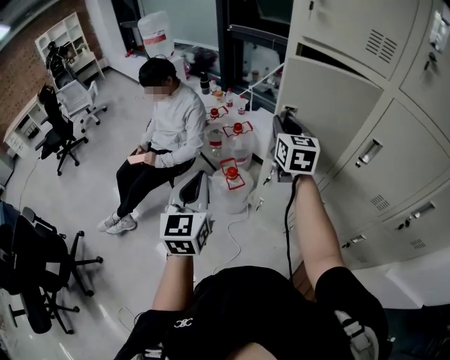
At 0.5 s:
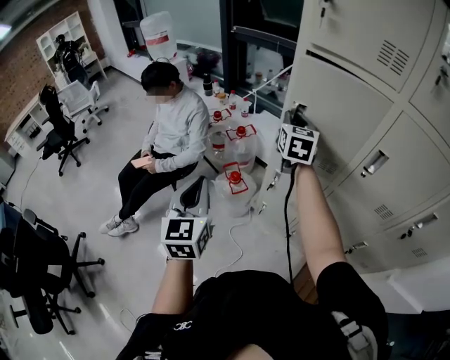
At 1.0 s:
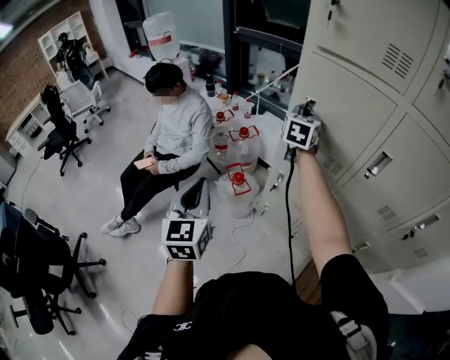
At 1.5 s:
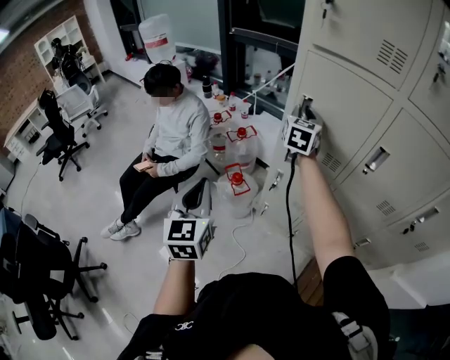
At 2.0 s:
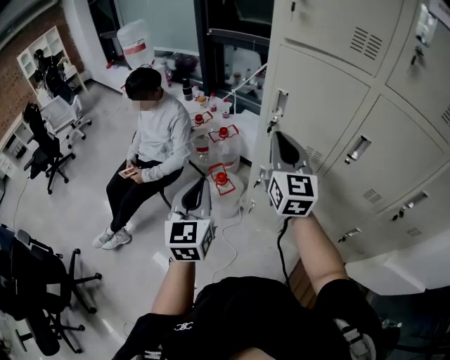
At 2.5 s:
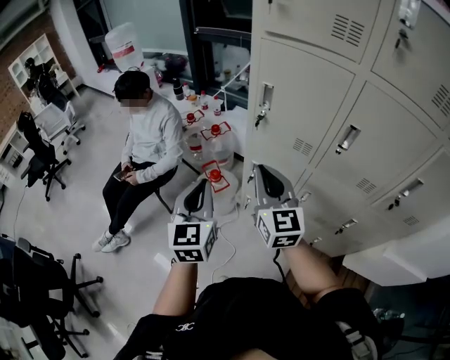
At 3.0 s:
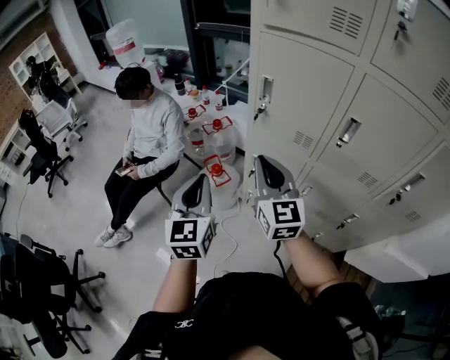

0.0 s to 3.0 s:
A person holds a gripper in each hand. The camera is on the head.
0.0 to 1.5 s: The right gripper heads forward, covering some 10 cm, and swivels some 20 degrees.
1.5 to 3.0 s: The right gripper moves backward, some 25 cm, and swivels roughly 20 degrees. The left gripper travels to the right by some 10 cm.

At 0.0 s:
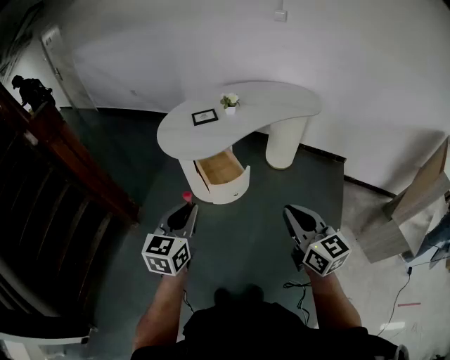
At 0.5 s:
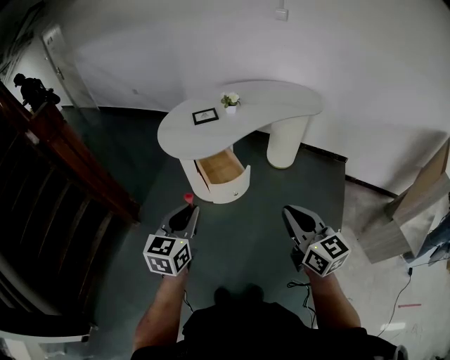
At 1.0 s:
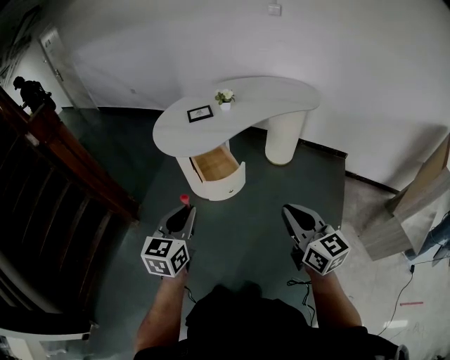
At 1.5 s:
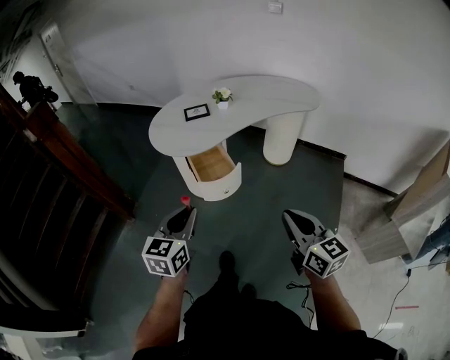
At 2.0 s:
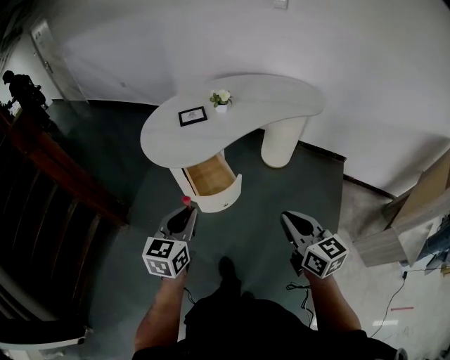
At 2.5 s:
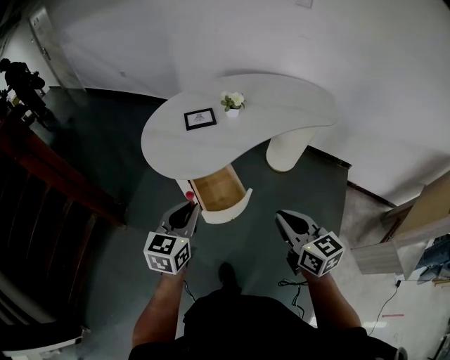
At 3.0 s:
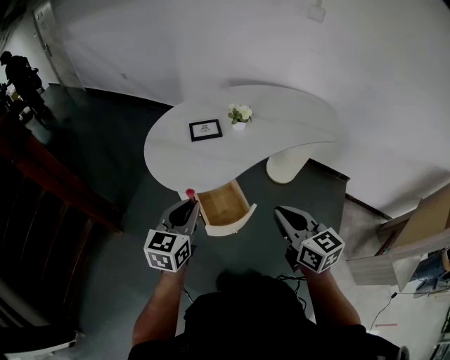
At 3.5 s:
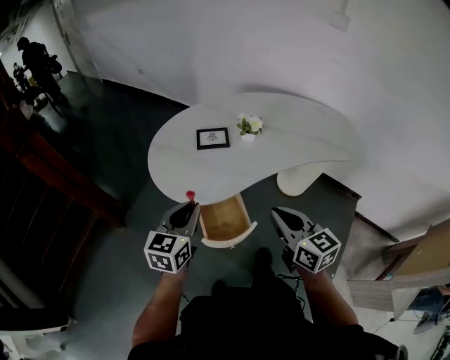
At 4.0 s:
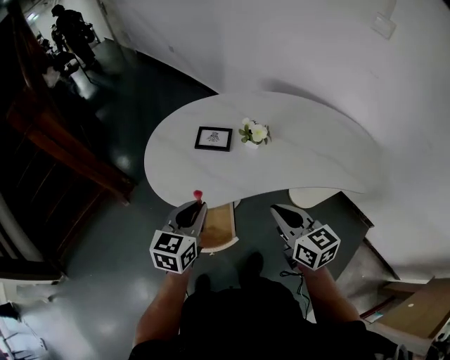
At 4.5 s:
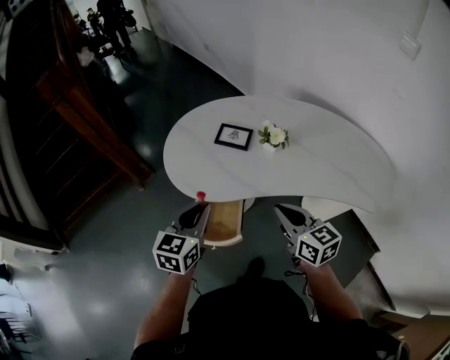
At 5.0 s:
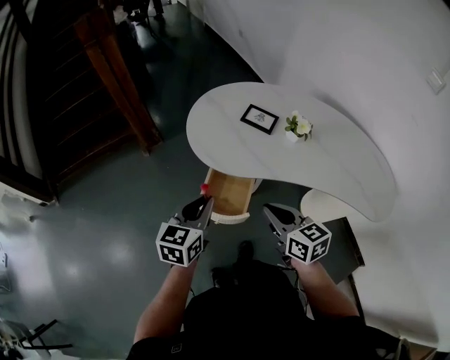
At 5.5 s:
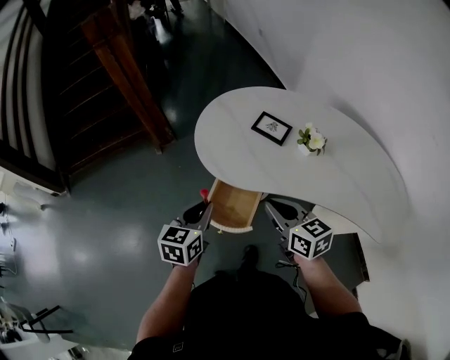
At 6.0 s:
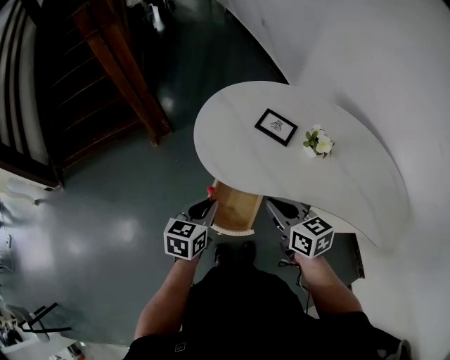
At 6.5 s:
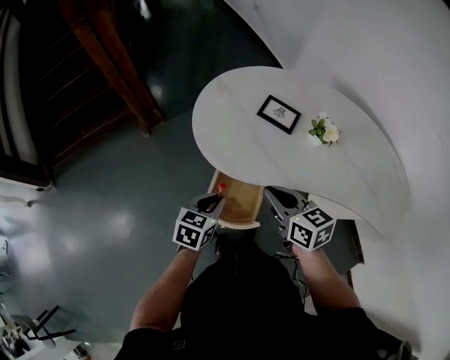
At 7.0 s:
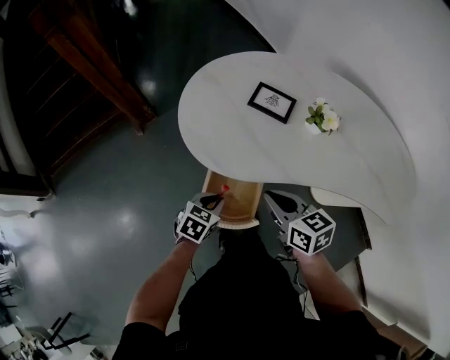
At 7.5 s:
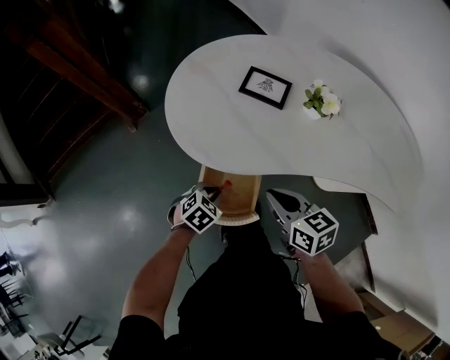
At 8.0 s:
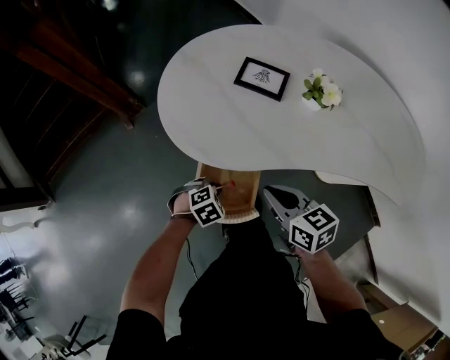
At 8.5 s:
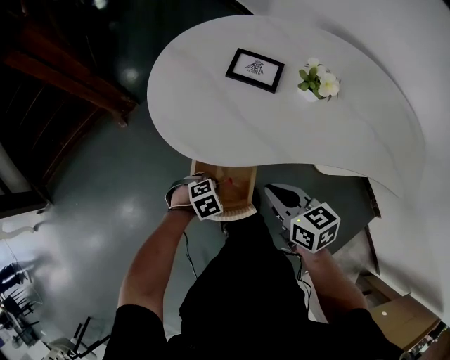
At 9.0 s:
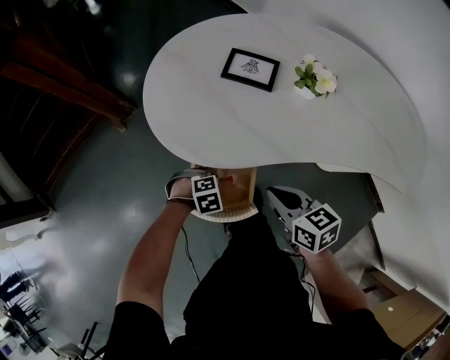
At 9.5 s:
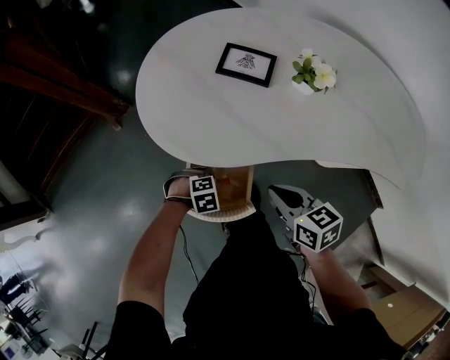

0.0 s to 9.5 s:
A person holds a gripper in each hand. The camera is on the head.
0.0 to 2.0 s: The right gripper moves forward, downward and to the right, some 15 cm. The left gripper moves forward, to the right and downward, approximately 15 cm.
2.0 to 4.0 s: Both grippers travel together forward, approximately 35 cm. The right gripper changes its angle by approximately 30 degrees. Meanwhile the left gripper turns by roughly 20 degrees.
4.0 to 5.5 s: The right gripper changes place by approximately 10 cm, and changes its angle by about 30 degrees. The left gripper moves some 10 cm, and changes its angle by roughly 30 degrees.
5.5 to 7.5 s: The right gripper moves downward, some 10 cm, while the left gripper heads downward, covering approximately 25 cm, and tilts its fingers some 30 degrees downward.
7.5 to 9.5 s: The left gripper is displaced downward by roughly 10 cm, and changes its angle by some 40 degrees; the right gripper shifts approximately 5 cm downward.

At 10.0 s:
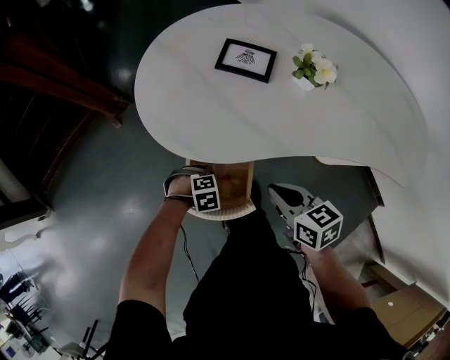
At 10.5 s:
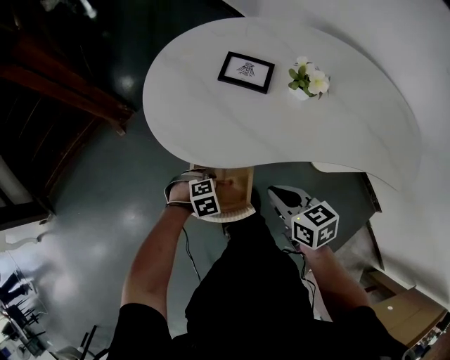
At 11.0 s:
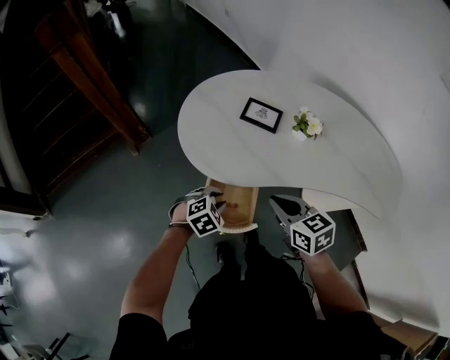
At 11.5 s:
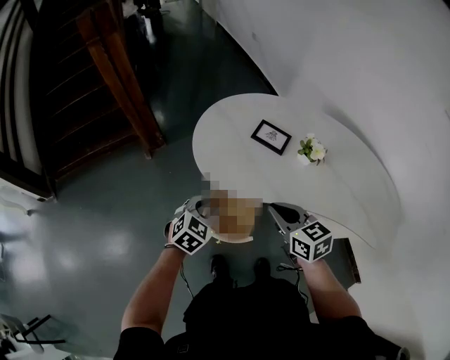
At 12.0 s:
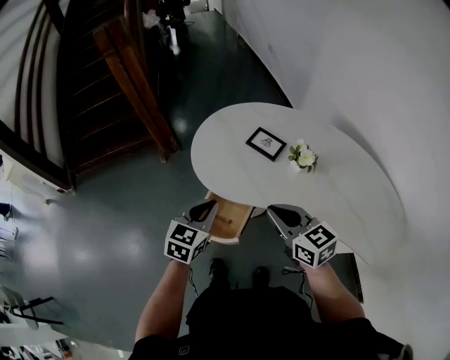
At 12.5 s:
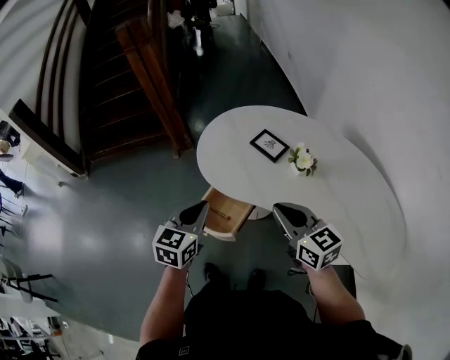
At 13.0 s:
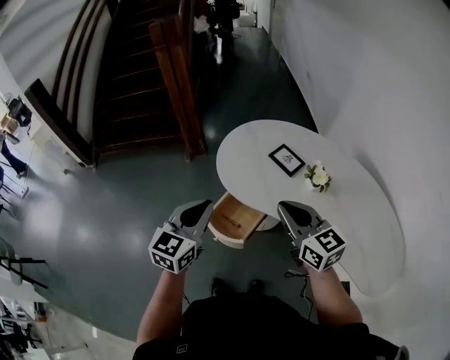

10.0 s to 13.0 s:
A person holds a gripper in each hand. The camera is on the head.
10.0 to 11.5 s: The right gripper travels upward by some 15 cm, and changes its angle by about 20 degrees. The left gripper heads upward, covering about 30 cm, and tilts its fingers some 40 degrees upward.
11.5 to 13.0 s: The left gripper is displaced upward and backward by roughly 25 cm, tilts its fingers some 30 degrees upward, and closes its fingers. Meanwhile the right gripper travels upward and to the right by roughly 15 cm, and swivels roughly 30 degrees.

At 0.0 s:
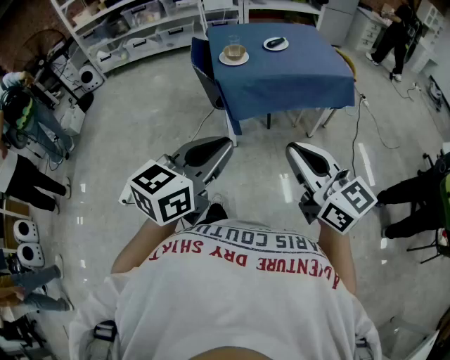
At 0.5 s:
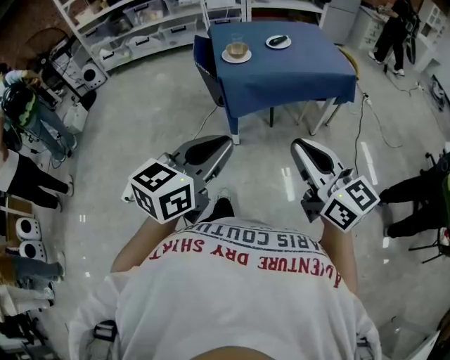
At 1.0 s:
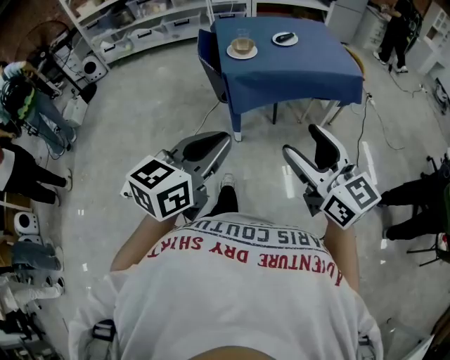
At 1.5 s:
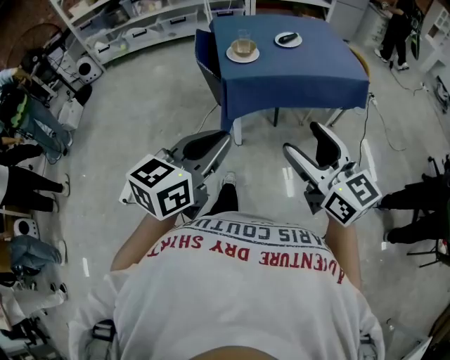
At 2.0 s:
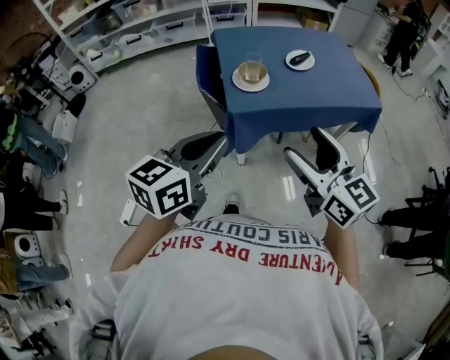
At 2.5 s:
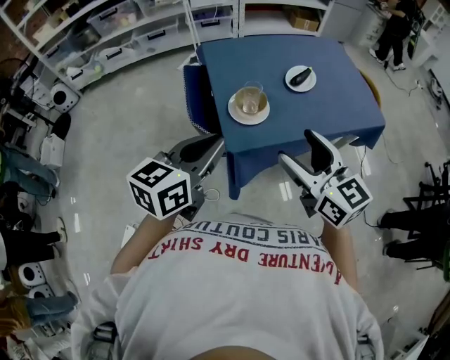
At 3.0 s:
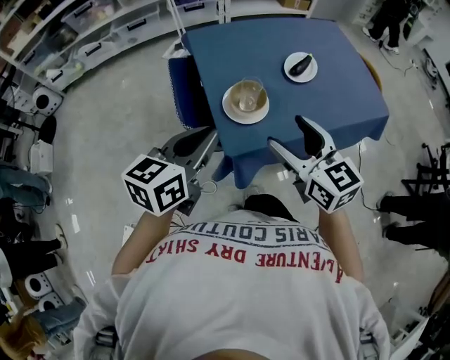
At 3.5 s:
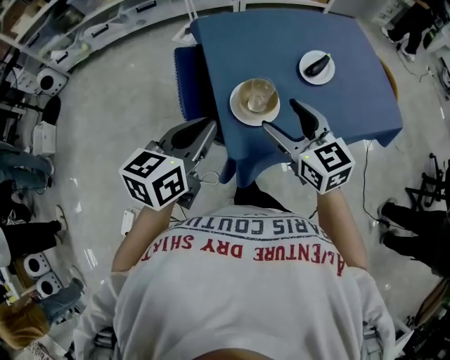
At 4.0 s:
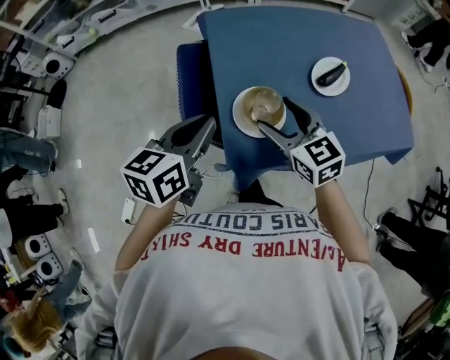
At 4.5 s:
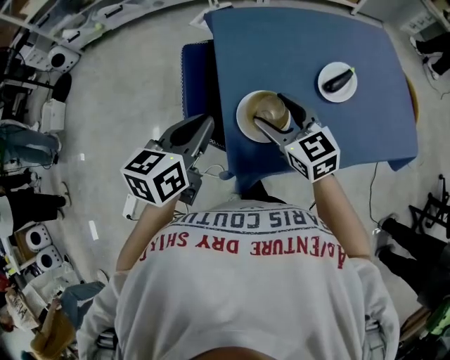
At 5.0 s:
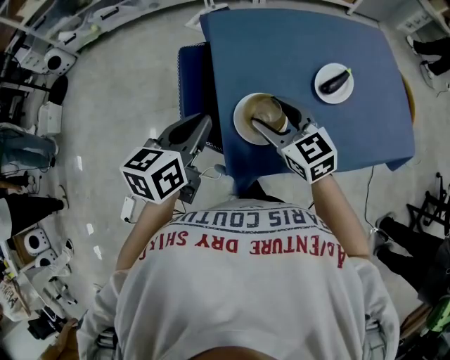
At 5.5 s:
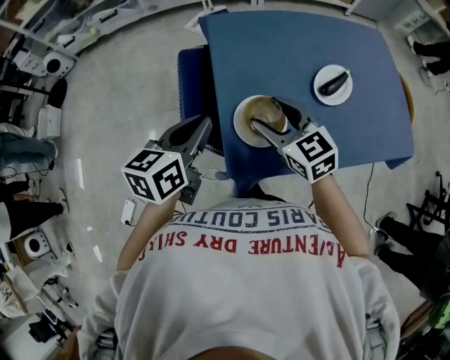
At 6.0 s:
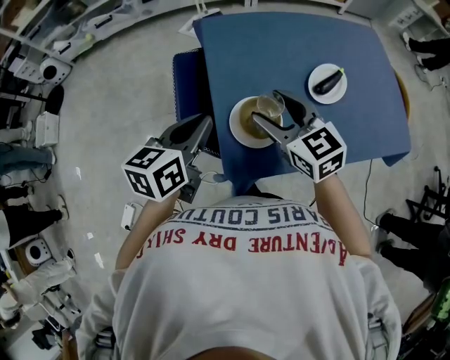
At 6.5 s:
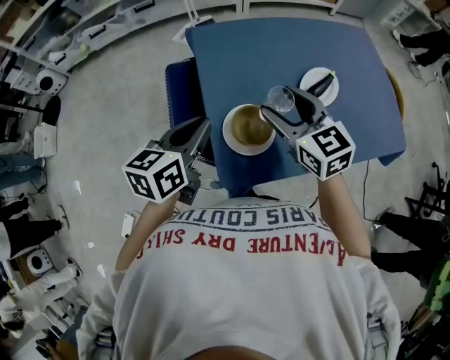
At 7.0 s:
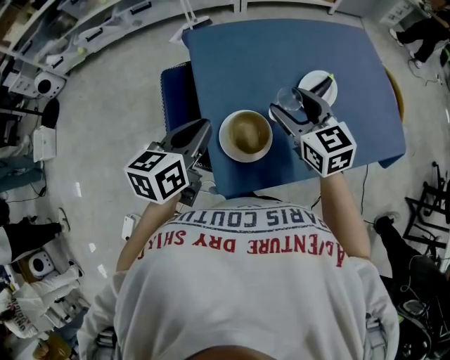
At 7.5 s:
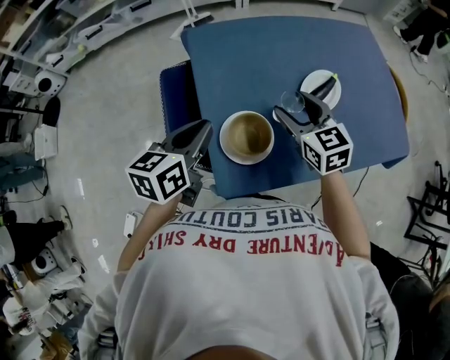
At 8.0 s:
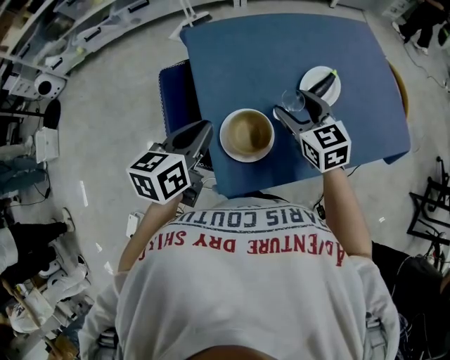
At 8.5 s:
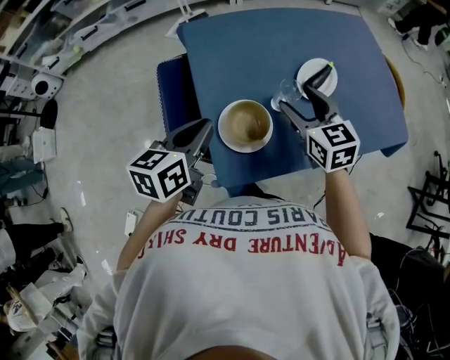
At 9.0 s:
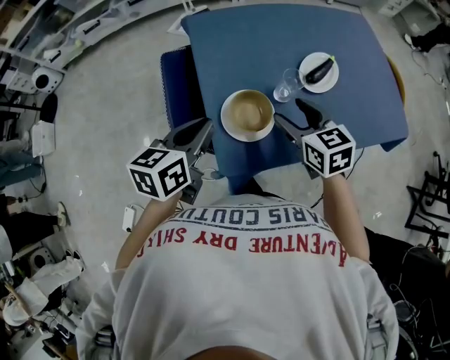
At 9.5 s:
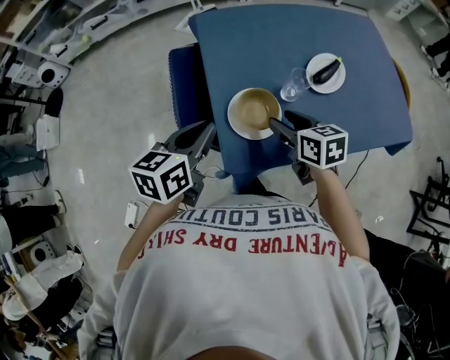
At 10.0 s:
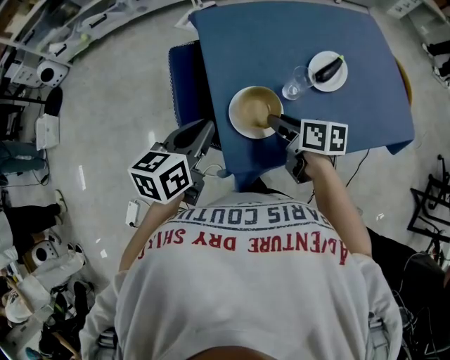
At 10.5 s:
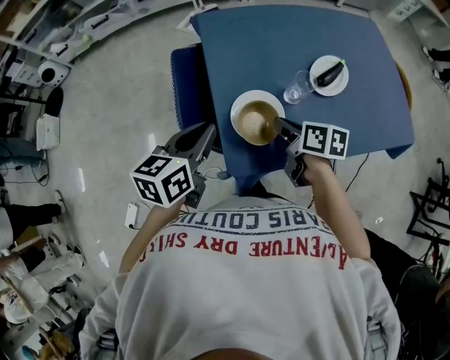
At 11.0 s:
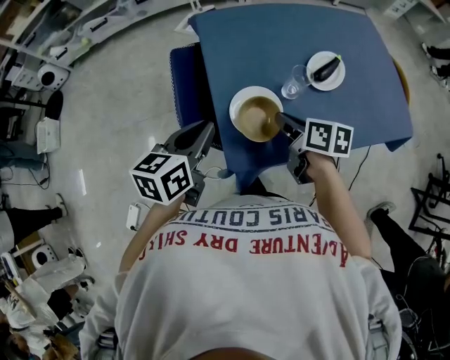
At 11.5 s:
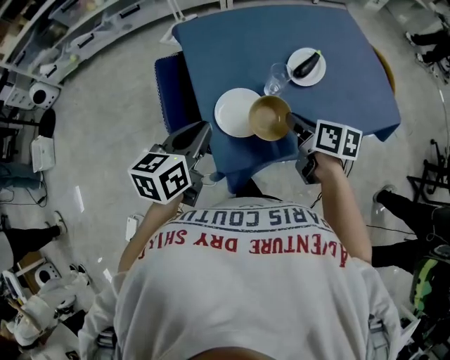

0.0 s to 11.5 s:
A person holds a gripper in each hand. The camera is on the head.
0.0 to 2.0 s: Both grippers travel together forward, some 25 cm. The right gripper opens.
2.0 to 4.0 s: The right gripper goes about 40 cm forward and downward, and swivels roughly 20 degrees. The left gripper travels forward by roughly 30 cm.
4.0 to 6.0 s: The grippers stay close to where they were, moving slightly.
6.0 to 7.5 s: The right gripper shifts some 10 cm to the right and forward, while the left gripper ends up approximately 5 cm from where it was.
7.5 to 9.5 s: The left gripper is displaced backward by roughly 5 cm; the right gripper goes roughly 10 cm backward and downward, and changes its angle by approximately 30 degrees.
9.5 to 11.5 s: The right gripper travels to the right by approximately 5 cm, rotates approximately 30 degrees, and closes.
